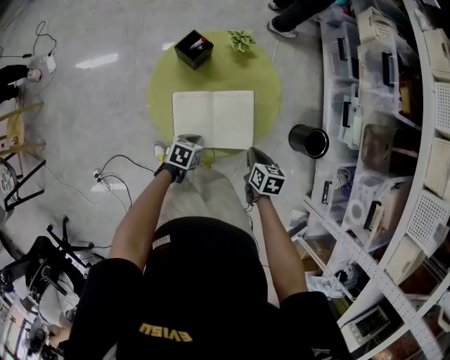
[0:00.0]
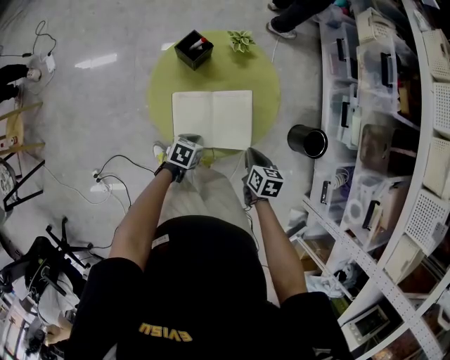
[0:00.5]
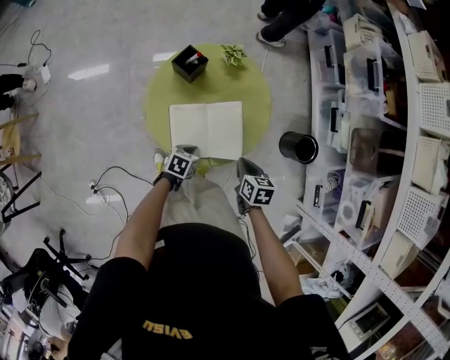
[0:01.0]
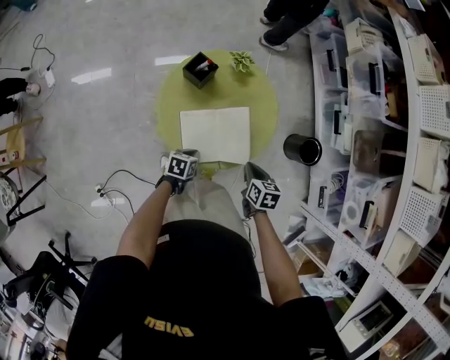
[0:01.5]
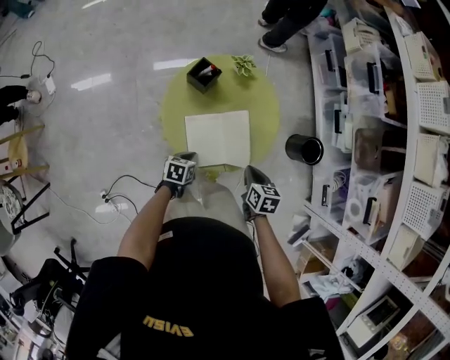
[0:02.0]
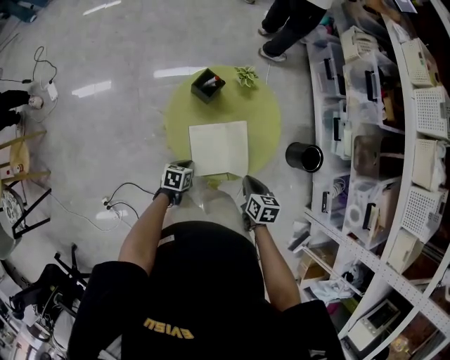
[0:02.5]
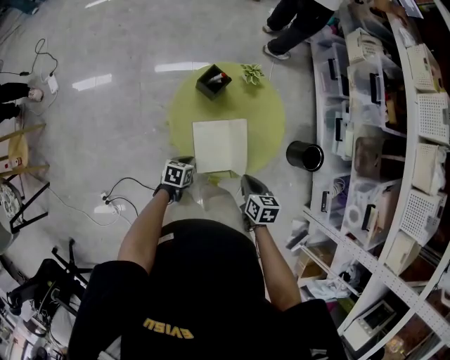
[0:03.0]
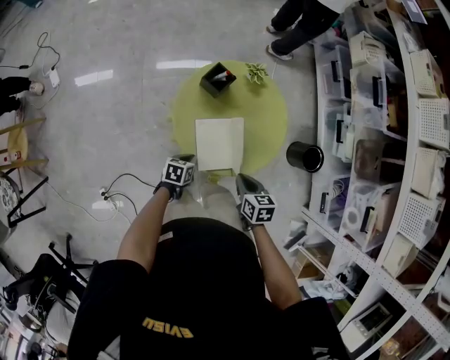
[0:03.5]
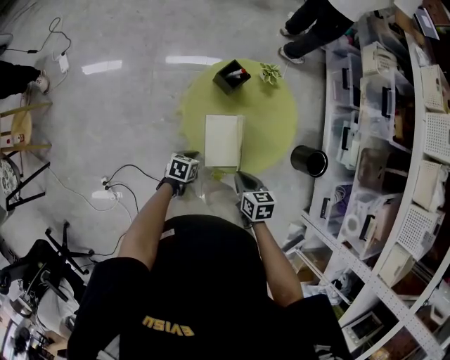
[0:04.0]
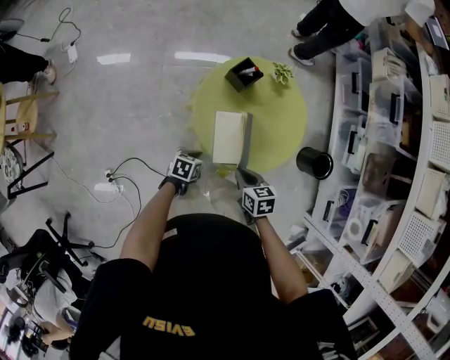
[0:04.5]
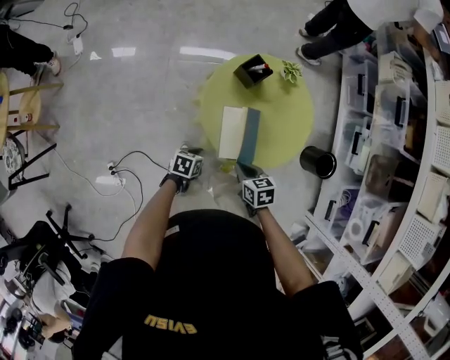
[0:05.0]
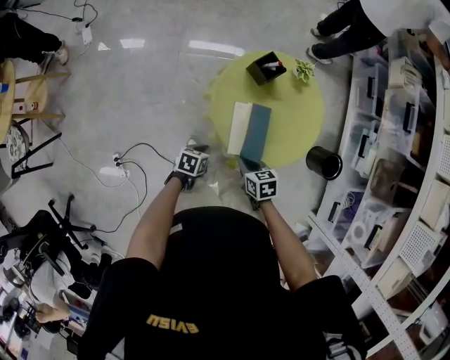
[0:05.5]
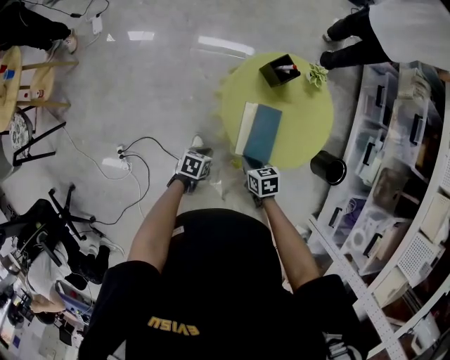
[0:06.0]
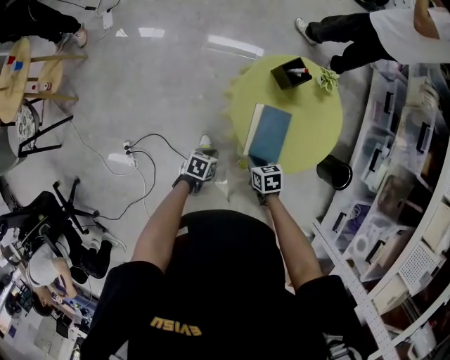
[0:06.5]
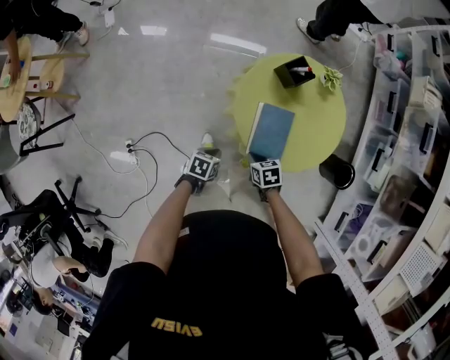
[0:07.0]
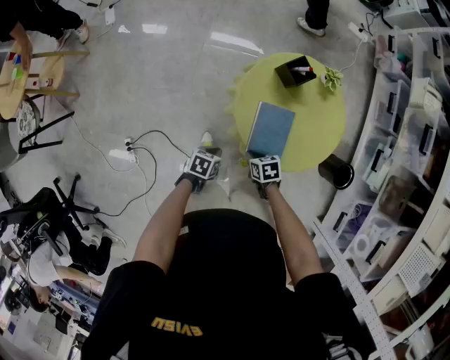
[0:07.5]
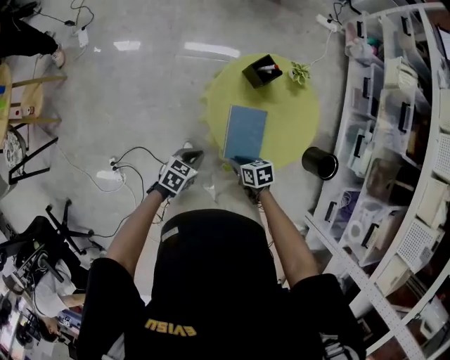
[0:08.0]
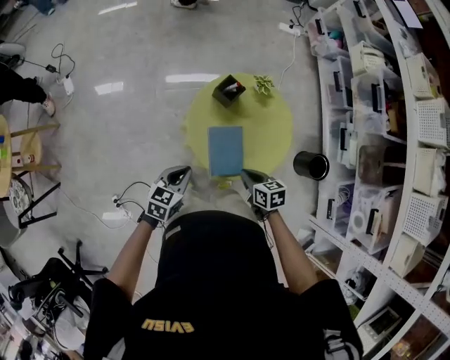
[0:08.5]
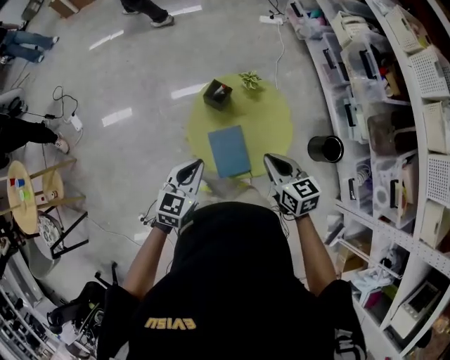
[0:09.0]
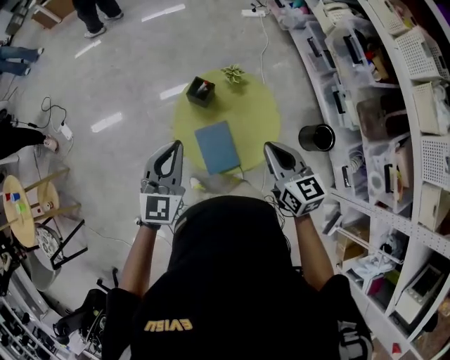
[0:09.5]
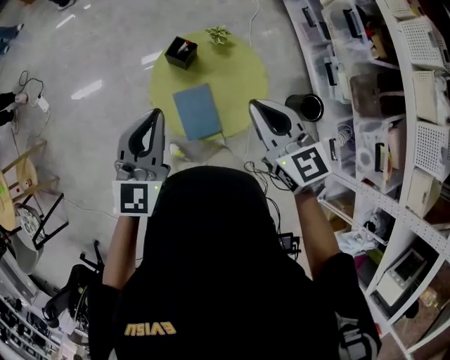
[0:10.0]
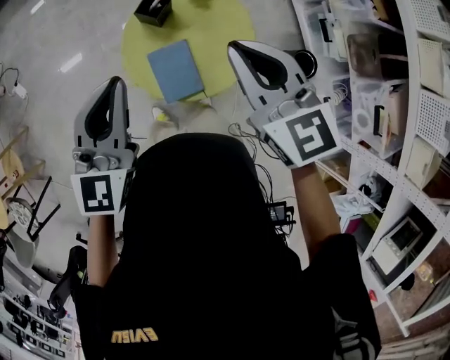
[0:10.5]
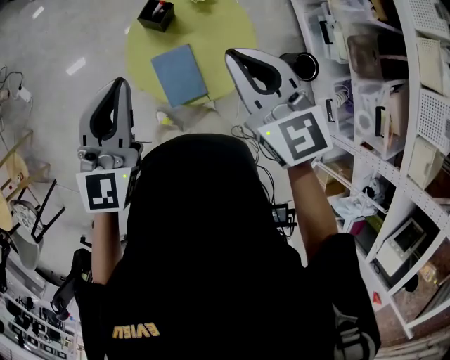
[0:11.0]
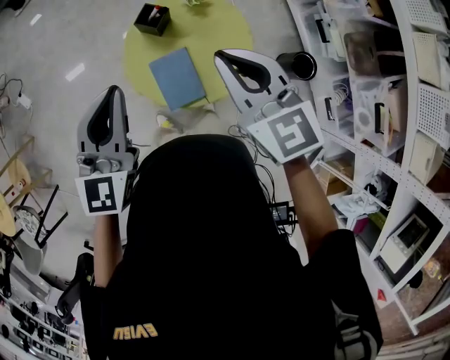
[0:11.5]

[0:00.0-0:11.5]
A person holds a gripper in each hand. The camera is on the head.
0:00.0 to 0:02.0: The left gripper travels to the left by about 5 cm. Meanwhile the right gripper is displaced upward and to the left by approximately 10 cm.
0:02.0 to 0:04.0: The right gripper travels to the left by roughly 10 cm, while the left gripper travels to the left by some 5 cm.
0:04.0 to 0:06.0: The left gripper moves backward and to the left, about 10 cm. Meanwhile the right gripper shifts about 10 cm to the left and downward, and rotates some 20 degrees.
0:06.0 to 0:07.5: The right gripper moves downward, approximately 5 cm.
0:07.5 to 0:09.5: Both grippers travel together upward, about 40 cm. The left gripper angles its fingers upward, by approximately 50 degrees; the right gripper angles its fingers upward, by approximately 40 degrees.
0:09.5 to 0:11.5: The right gripper heads upward, covering some 10 cm, and turns by about 20 degrees.

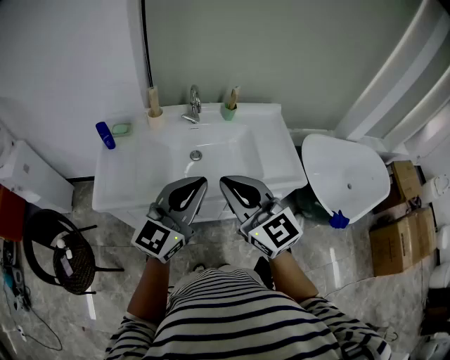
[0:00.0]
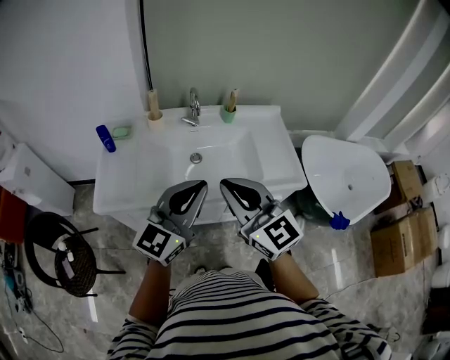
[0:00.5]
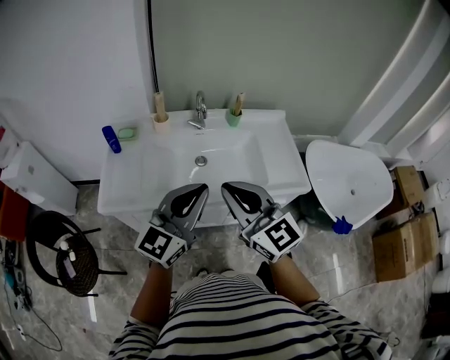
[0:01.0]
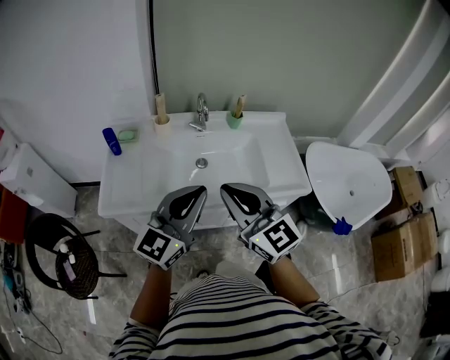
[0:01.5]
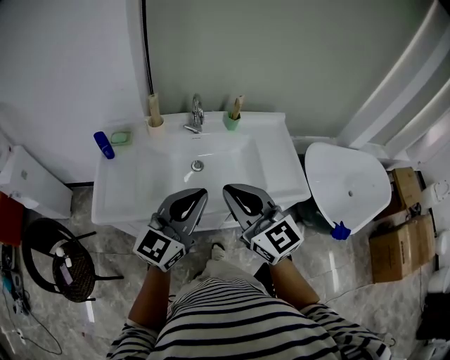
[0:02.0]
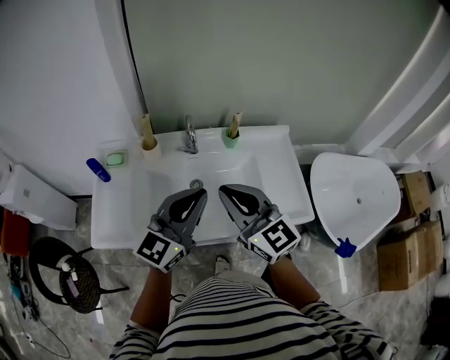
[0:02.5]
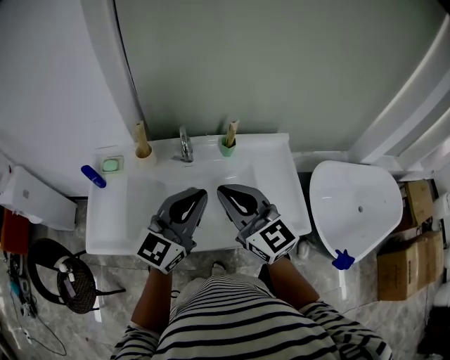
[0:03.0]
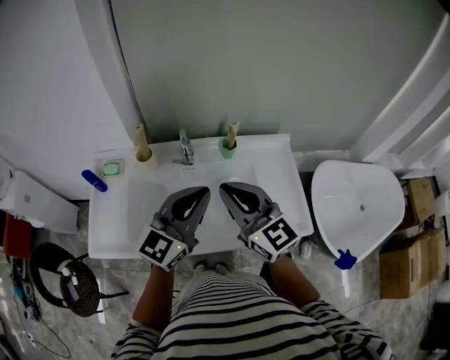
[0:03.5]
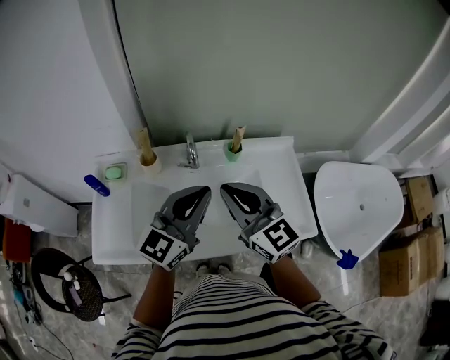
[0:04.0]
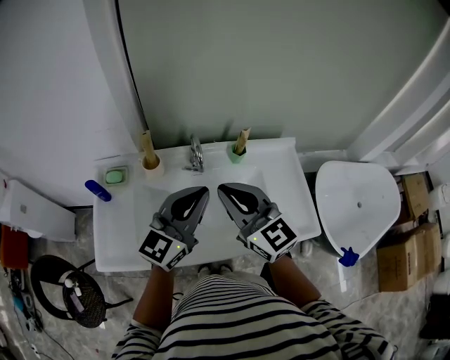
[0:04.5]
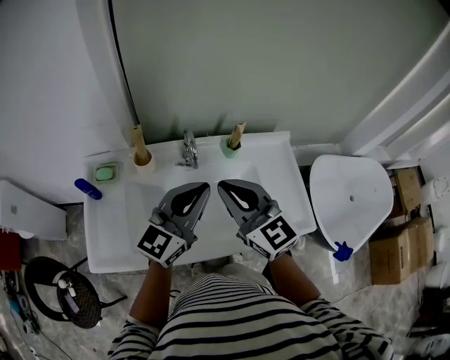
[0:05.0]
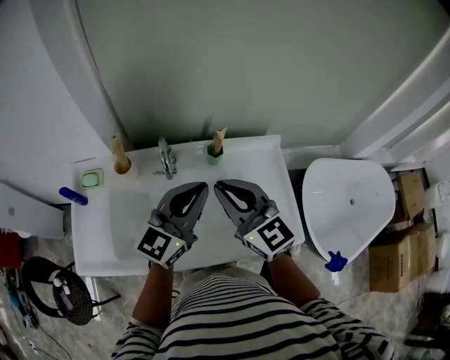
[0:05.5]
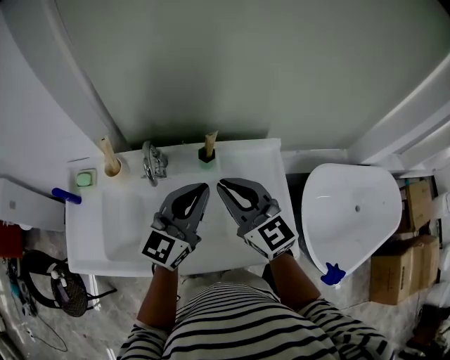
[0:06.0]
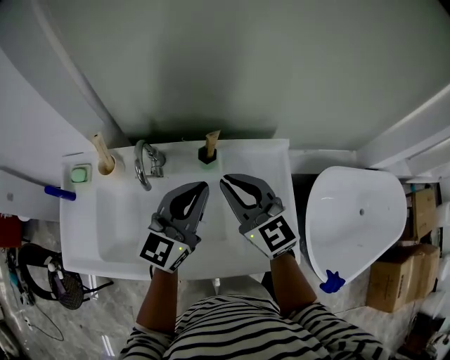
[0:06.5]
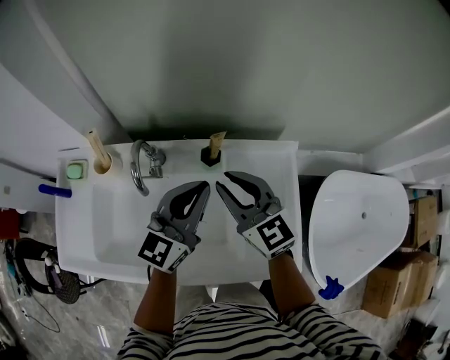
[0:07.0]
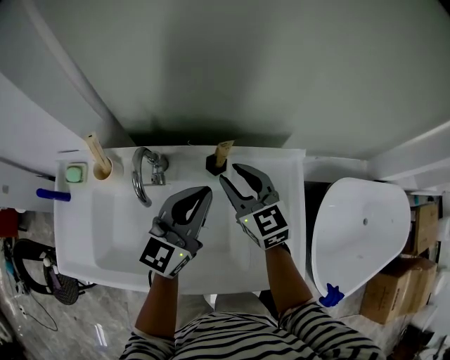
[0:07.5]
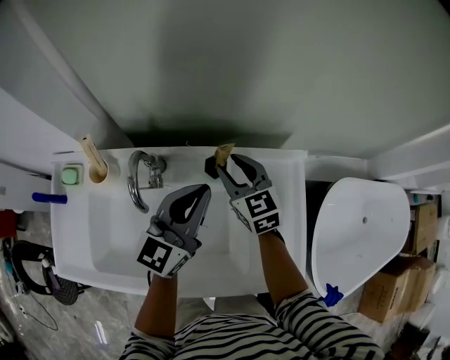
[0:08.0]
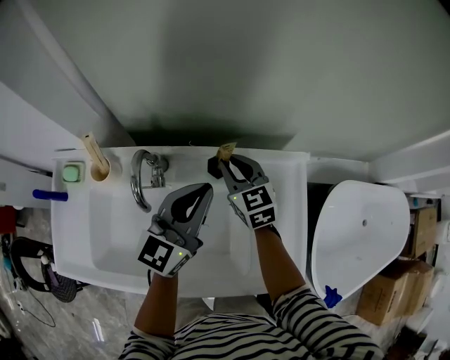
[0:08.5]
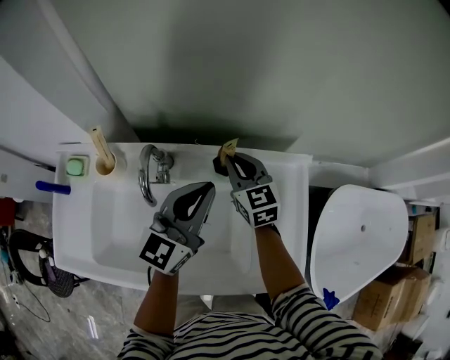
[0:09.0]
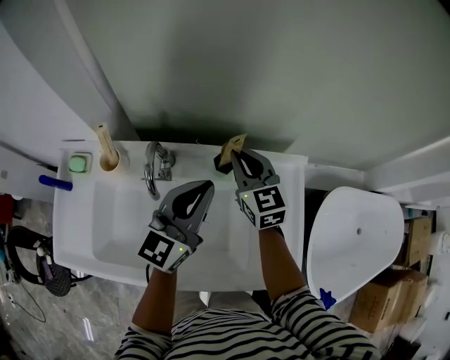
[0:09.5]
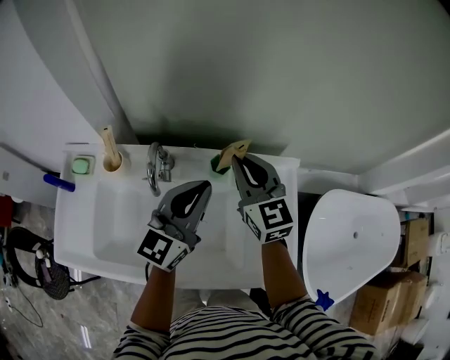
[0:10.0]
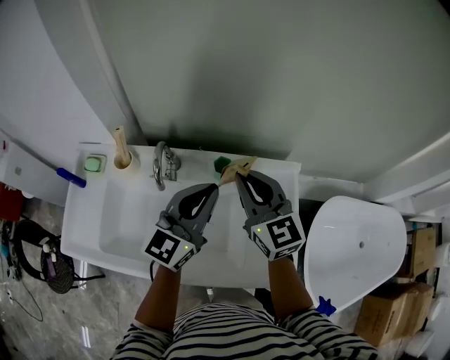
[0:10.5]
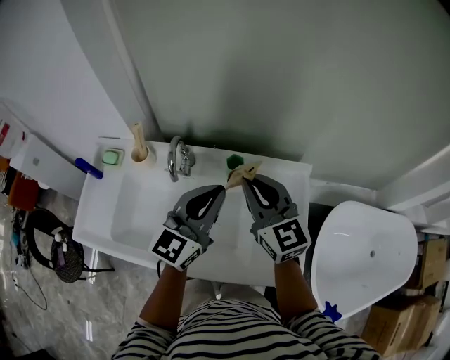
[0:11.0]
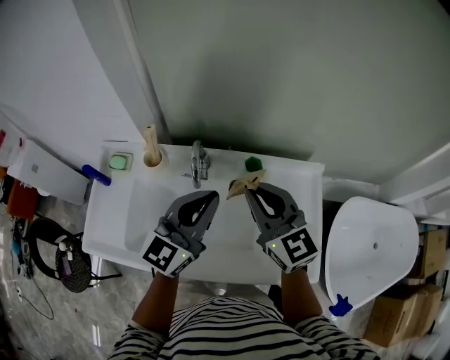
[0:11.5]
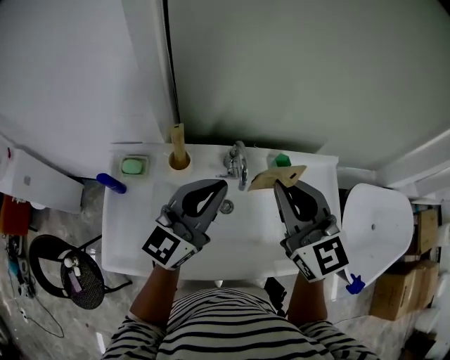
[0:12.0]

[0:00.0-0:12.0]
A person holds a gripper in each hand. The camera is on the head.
0:00.0 to 0:02.0: There are only small adjustments of the grippers.
0:02.0 to 0:04.0: Both grippers move forward, roughly 20 cm.
0:04.0 to 0:06.0: The left gripper heads to the right and forward, covering roughly 15 cm; the right gripper goes some 15 cm to the right, forward and downward.
0:06.0 to 0:08.0: The left gripper is displaced forward and downward by about 15 cm. Meanwhile the right gripper moves forward and downward, roughly 25 cm, and opens.
0:08.0 to 0:10.0: The right gripper is displaced upward by about 15 cm, and closes its fingers; the left gripper moves upward, roughly 5 cm.
0:10.0 to 0:12.0: The right gripper is displaced to the left, backward and upward by some 20 cm. Meanwhile the left gripper is displaced to the left by approximately 20 cm.

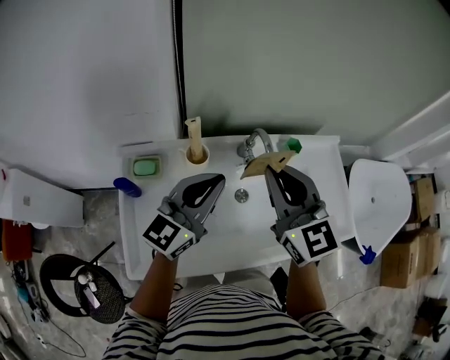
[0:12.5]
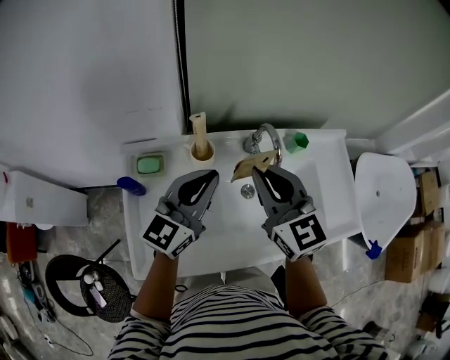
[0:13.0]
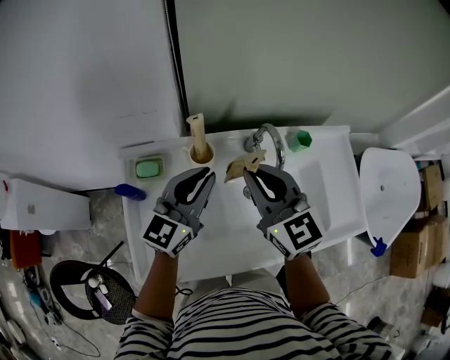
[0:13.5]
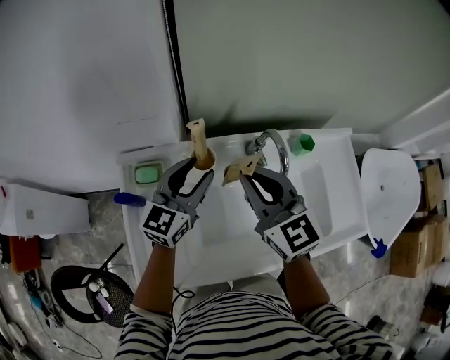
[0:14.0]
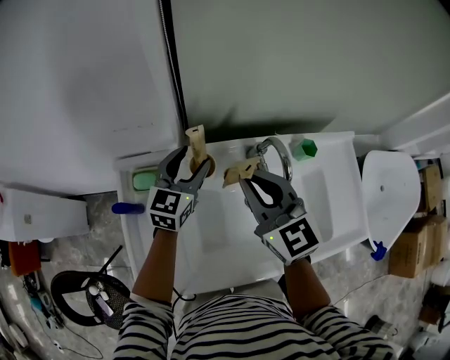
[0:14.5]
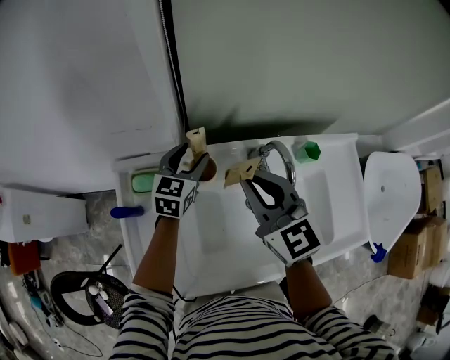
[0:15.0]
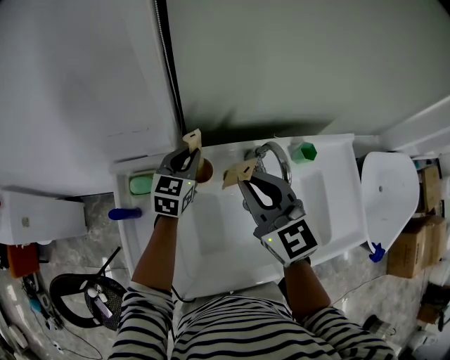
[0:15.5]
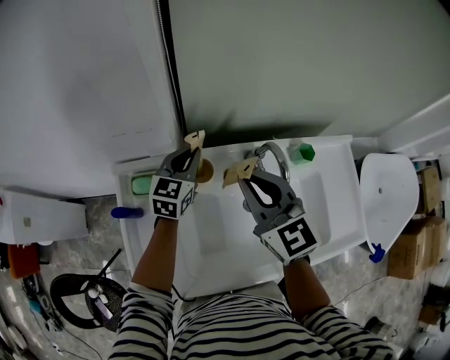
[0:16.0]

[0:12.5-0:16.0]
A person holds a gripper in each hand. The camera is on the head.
0:12.5 to 0:14.5: The left gripper moves forward, downward and to the left, approximately 20 cm, turns by about 20 degrees, and opens up. Meanwhile the right gripper is displaced downward, to the left and forward by about 10 cm.
0:14.5 to 0:16.0: The left gripper closes.
